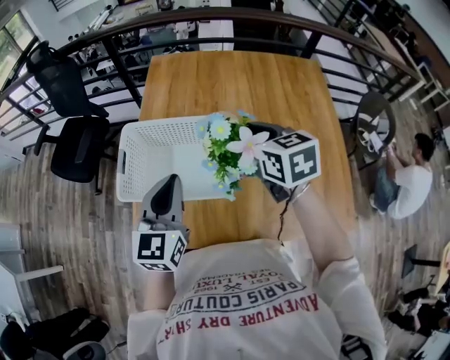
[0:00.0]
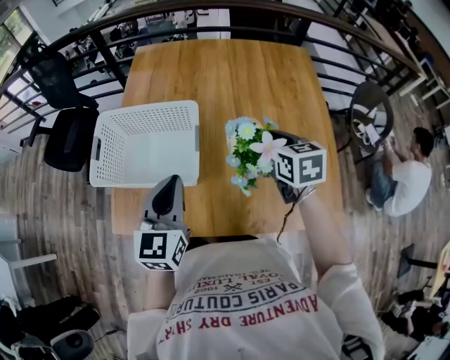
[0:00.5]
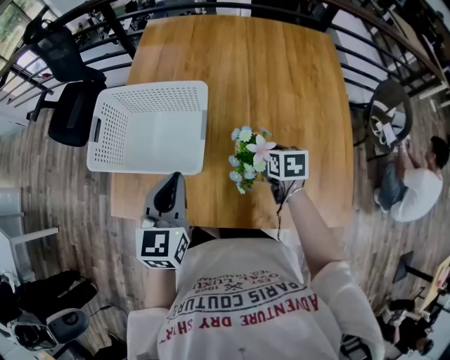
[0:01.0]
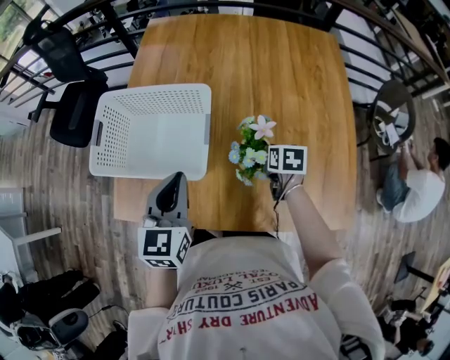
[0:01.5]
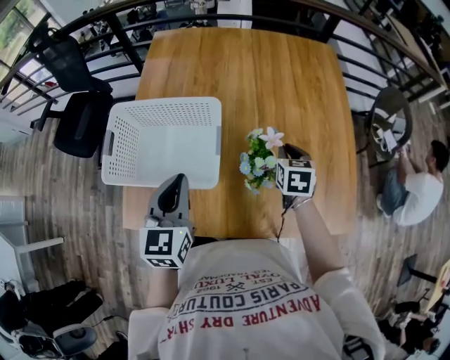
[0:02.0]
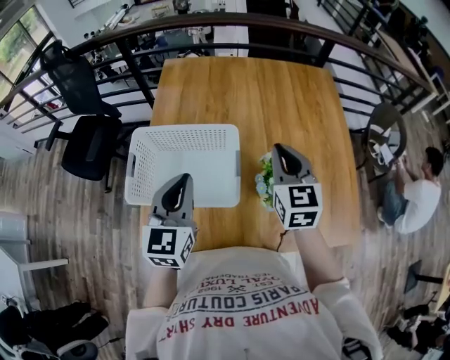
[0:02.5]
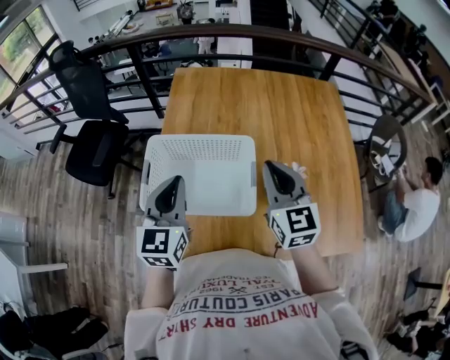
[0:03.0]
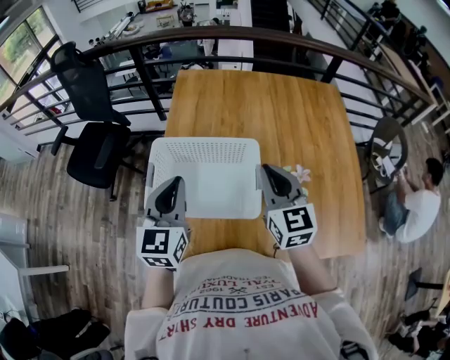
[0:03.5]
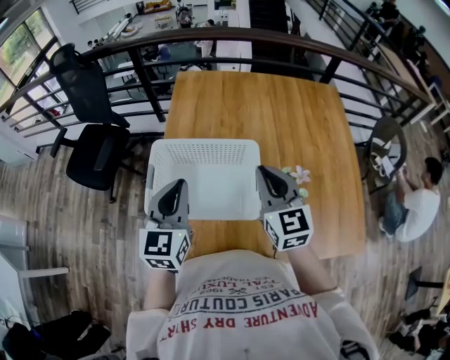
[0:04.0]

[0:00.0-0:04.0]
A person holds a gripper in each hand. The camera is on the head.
0:00.0 to 0:02.0: The left gripper travels to the right and downward by about 10 cm; the right gripper heads downward and to the right, covering roughly 25 cm, and changes its angle by approximately 30 degrees.
0:02.0 to 0:04.0: The right gripper moves to the left and upward, about 30 cm, and tilts its fingers some 30 degrees upward, while the left gripper moves to the left and upward, some 15 cm.

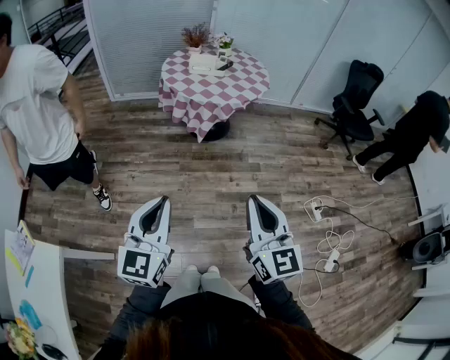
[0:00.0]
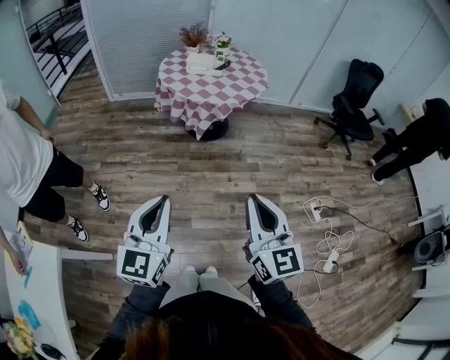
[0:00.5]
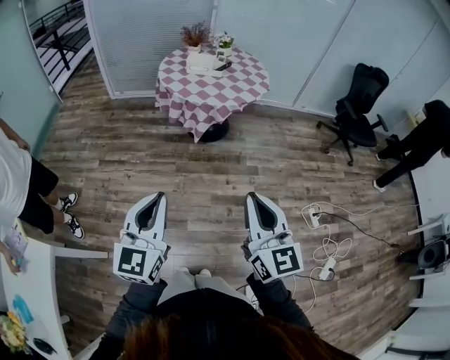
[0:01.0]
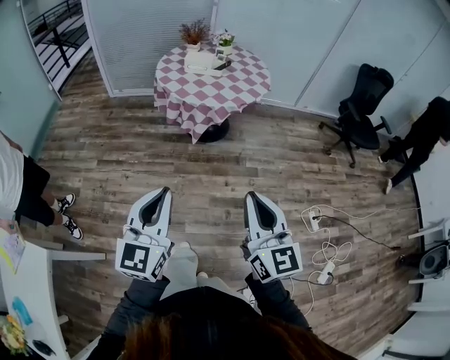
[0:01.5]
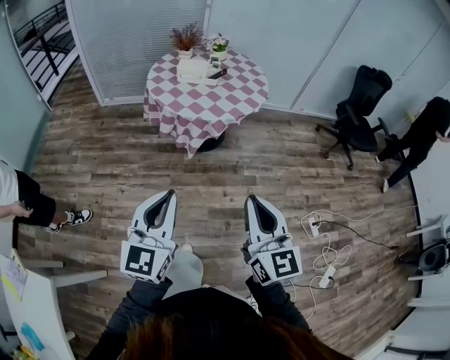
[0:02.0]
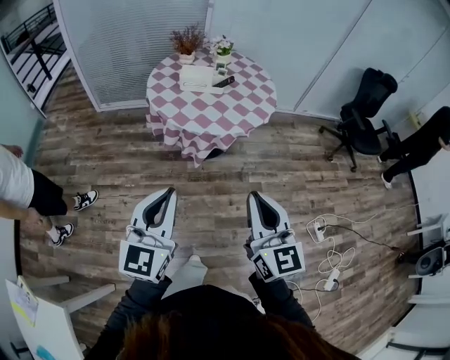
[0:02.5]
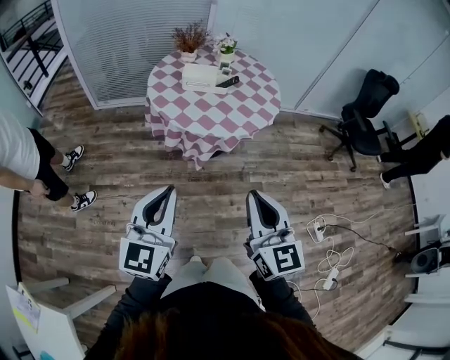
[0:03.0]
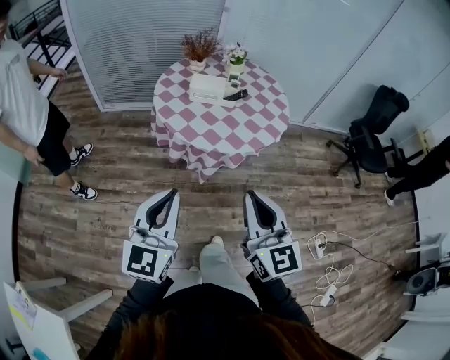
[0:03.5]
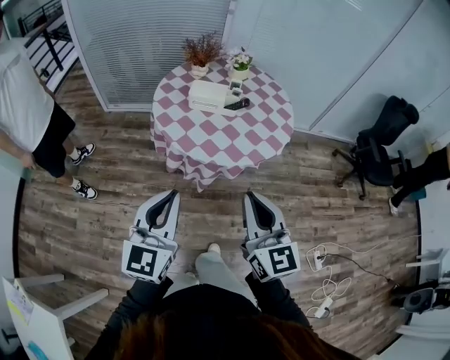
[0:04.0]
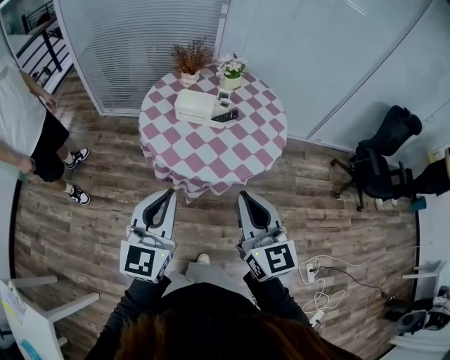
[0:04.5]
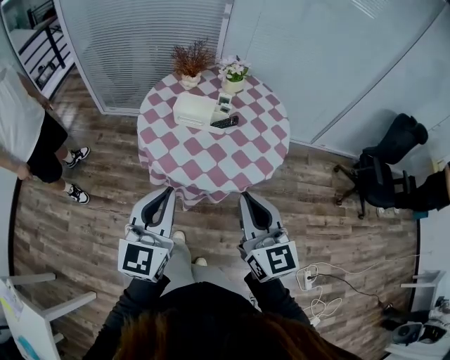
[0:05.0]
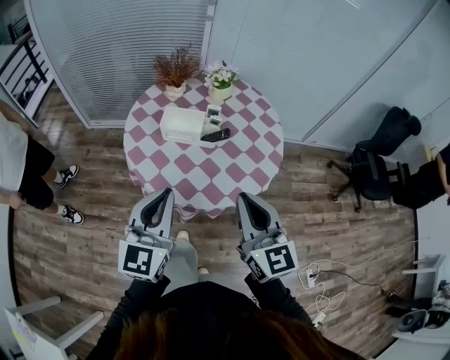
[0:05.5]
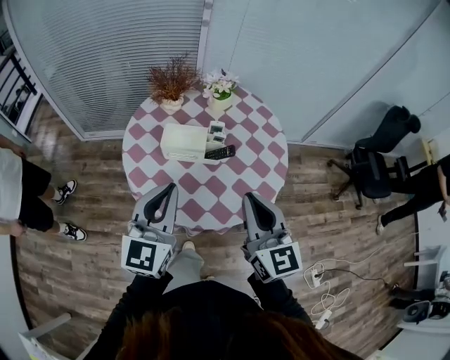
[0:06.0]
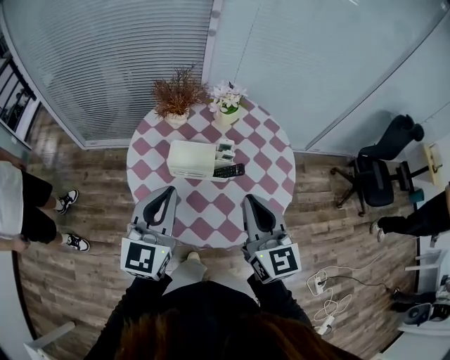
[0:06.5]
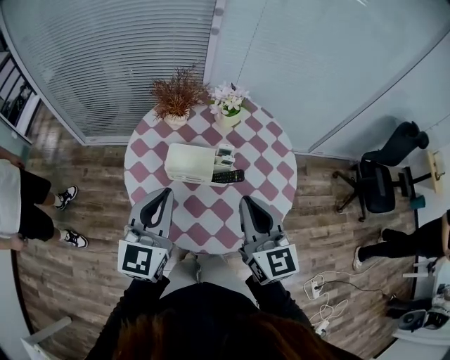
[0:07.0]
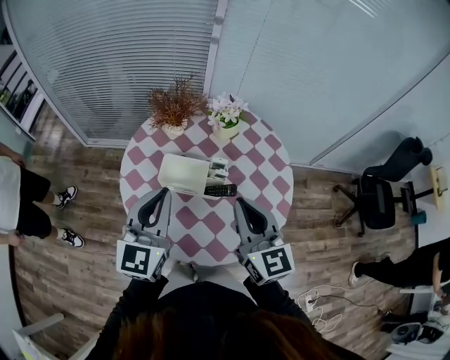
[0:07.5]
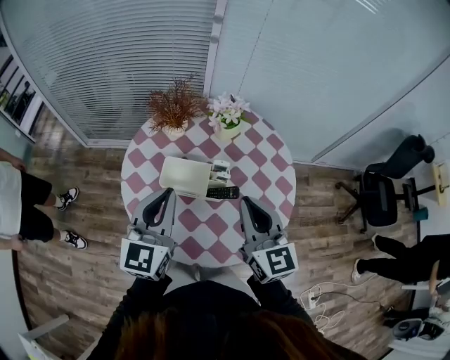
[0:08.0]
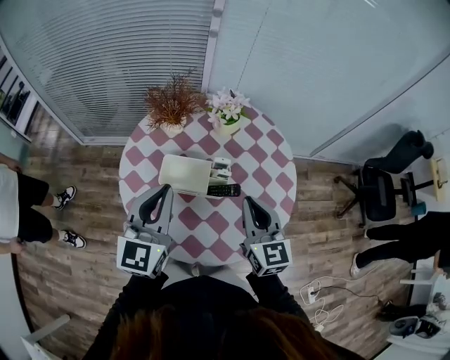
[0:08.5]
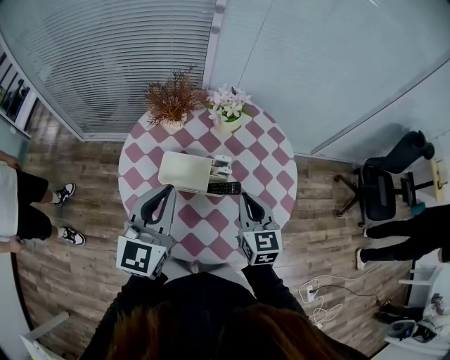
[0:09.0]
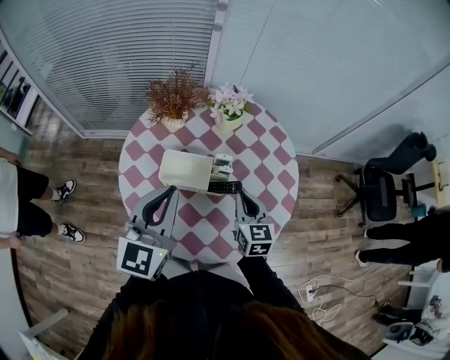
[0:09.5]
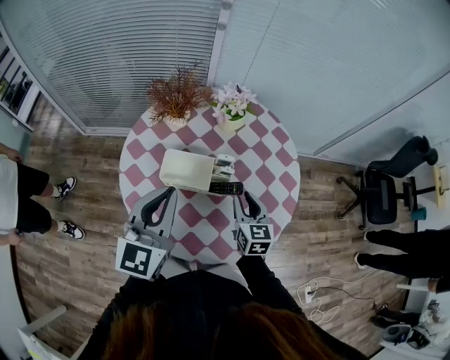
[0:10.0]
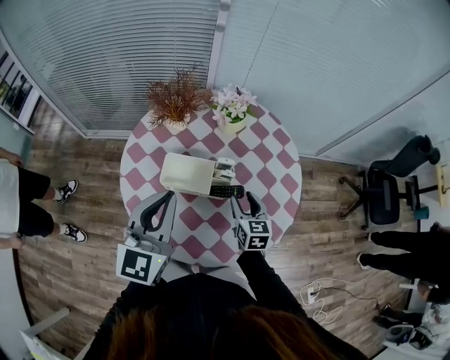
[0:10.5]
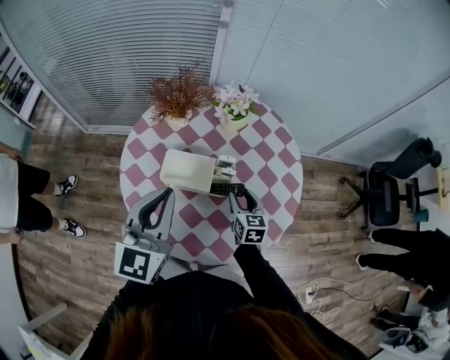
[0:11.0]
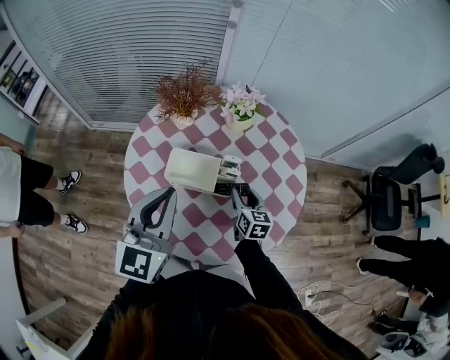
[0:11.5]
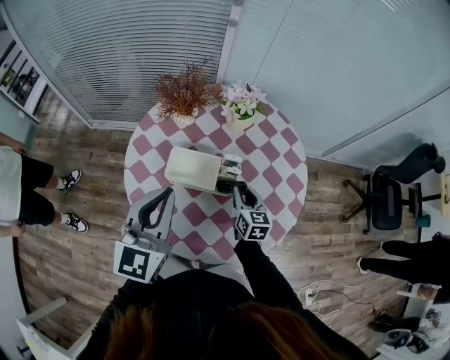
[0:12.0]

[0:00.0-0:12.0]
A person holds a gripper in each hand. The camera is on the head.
0:00.0 to 0:02.0: Both grippers move forward, roughly 20 cm.
0:02.0 to 0:04.0: Both grippers travel together forward, approximately 25 cm.
0:04.0 to 0:06.0: The two grippers go approximately 30 cm forward.
0:06.0 to 0:08.0: Both grippers move forward, some 15 cm.
0:08.0 to 0:10.0: The right gripper goes approximately 20 cm downward, and turns by approximately 20 degrees.
0:10.0 to 0:12.0: The right gripper travels downward by roughly 5 cm.

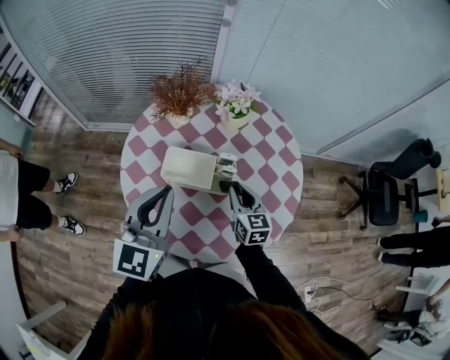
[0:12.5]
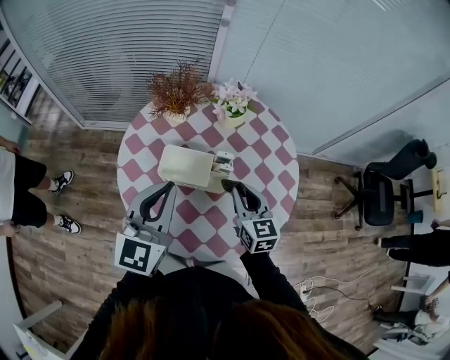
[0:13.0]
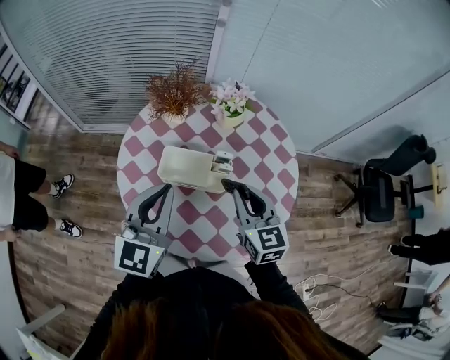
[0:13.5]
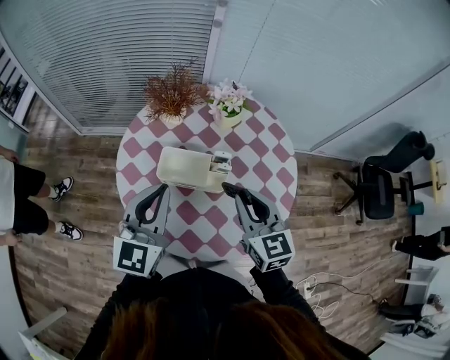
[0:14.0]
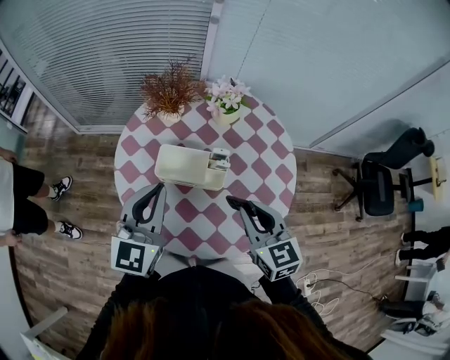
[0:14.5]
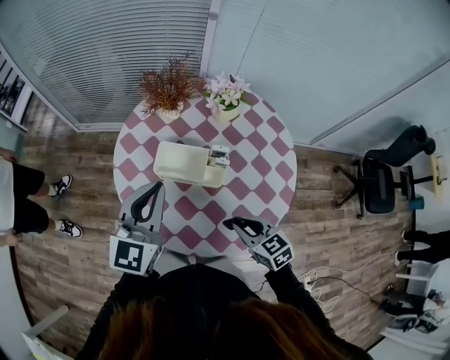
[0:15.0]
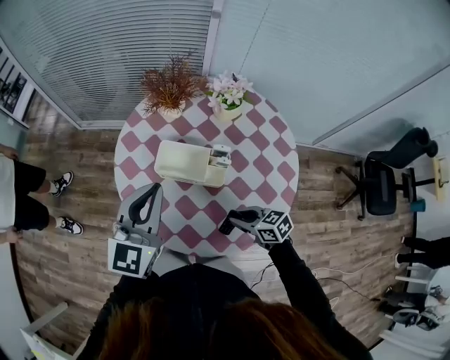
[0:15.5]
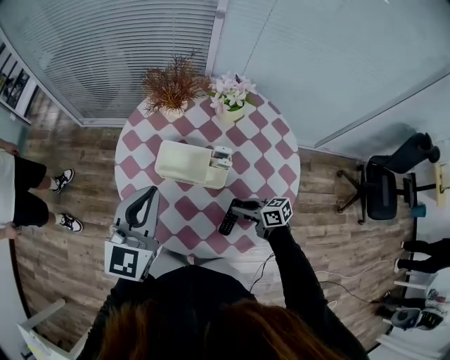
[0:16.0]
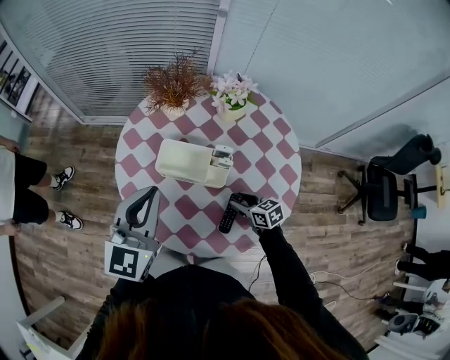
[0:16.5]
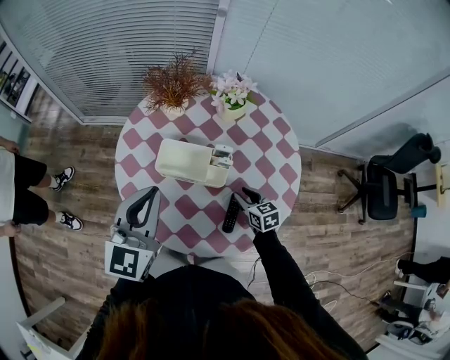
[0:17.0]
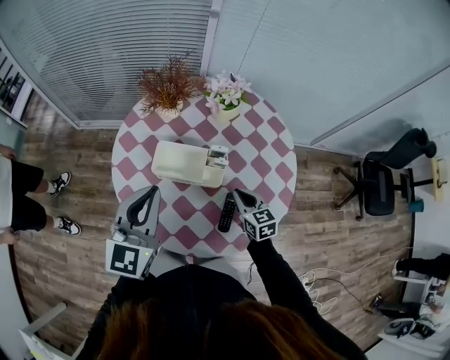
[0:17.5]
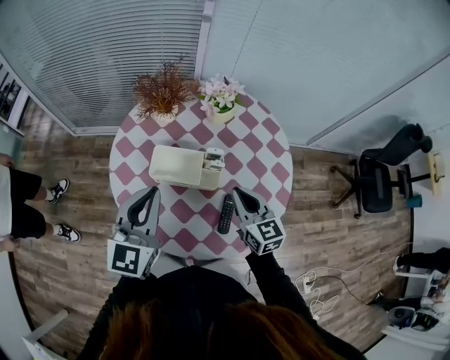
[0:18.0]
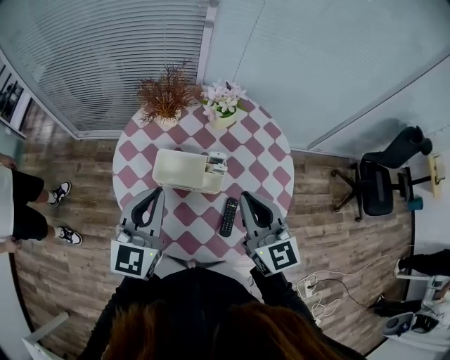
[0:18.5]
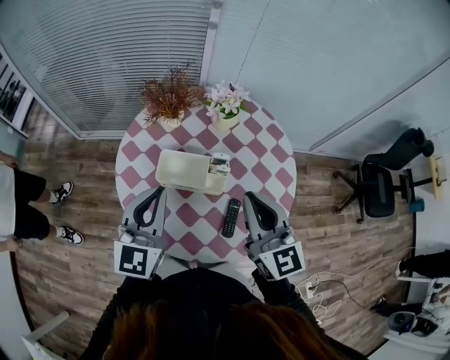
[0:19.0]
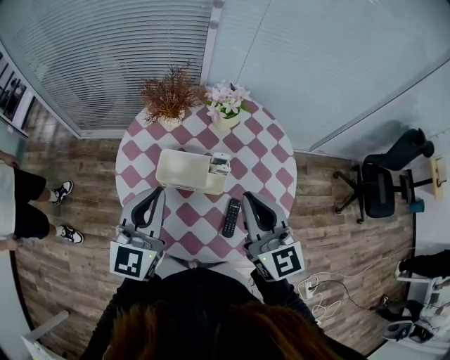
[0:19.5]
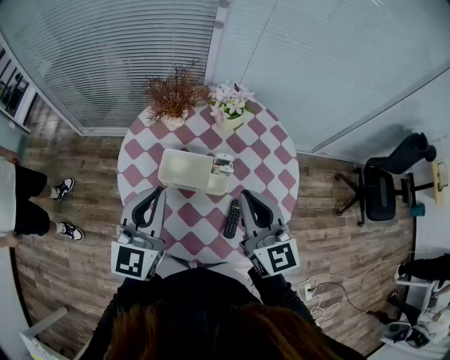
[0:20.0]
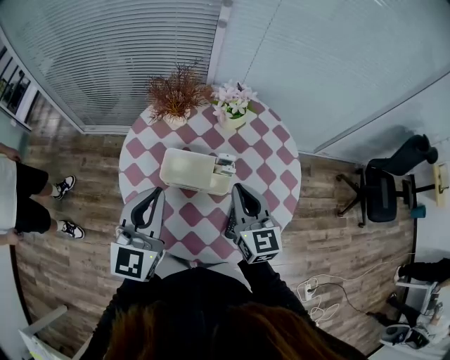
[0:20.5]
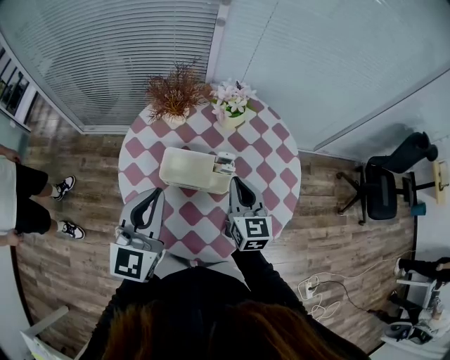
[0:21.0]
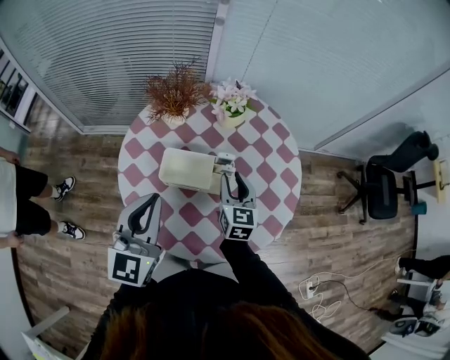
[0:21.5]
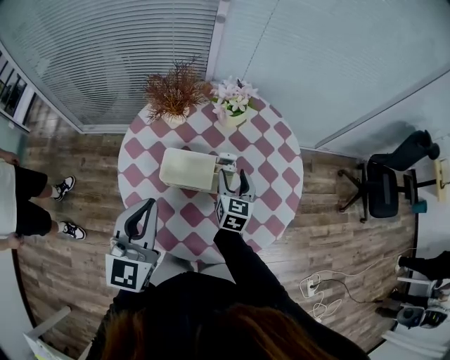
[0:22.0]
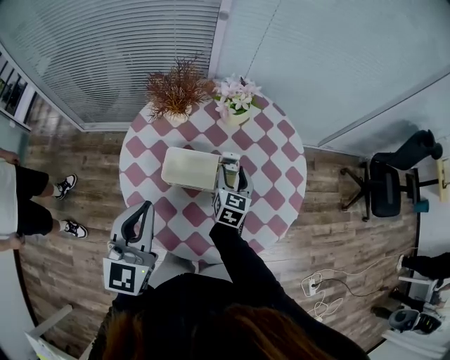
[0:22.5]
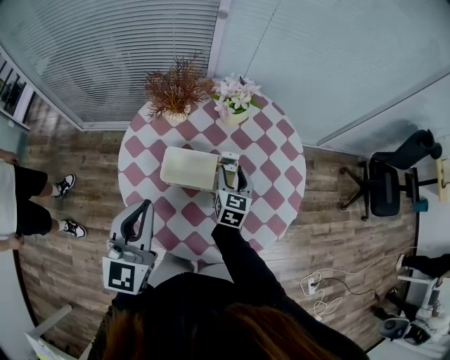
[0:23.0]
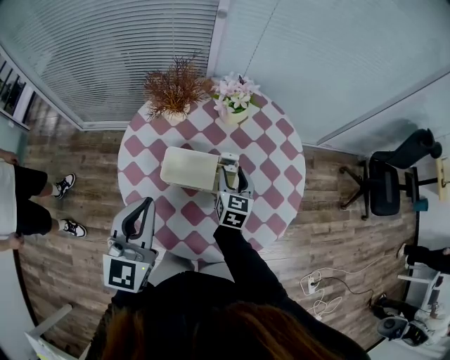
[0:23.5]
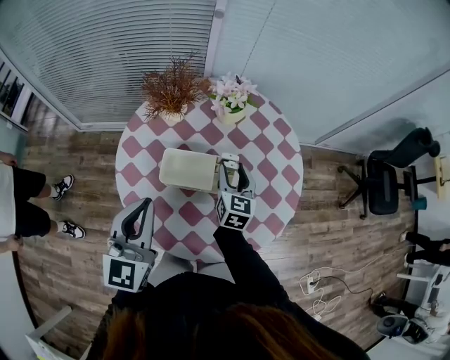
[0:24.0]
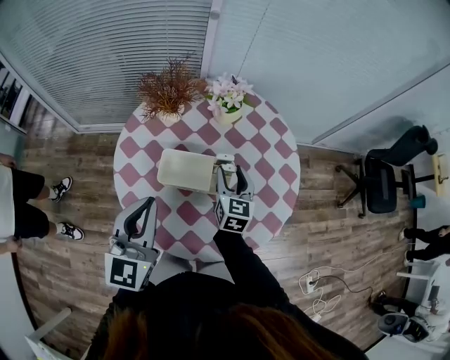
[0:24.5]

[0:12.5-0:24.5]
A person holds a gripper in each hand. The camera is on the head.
0:12.5 to 0:14.5: The right gripper is displaced upward and backward by some 15 cm.
0:14.5 to 0:16.5: The right gripper shifts some 25 cm downward, and swivels approximately 30 degrees.
0:16.5 to 0:18.5: The right gripper is displaced upward by approximately 30 cm, points its fingers approximately 40 degrees further upward, and closes its fingers.
0:18.5 to 0:20.5: The right gripper goes approximately 5 cm downward.
0:20.5 to 0:22.5: The right gripper heads downward and forward, covering roughly 15 cm, turns by about 30 degrees, and opens up.
0:22.5 to 0:24.5: The grippers move only a little.
